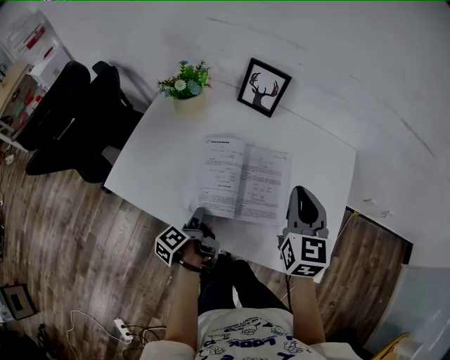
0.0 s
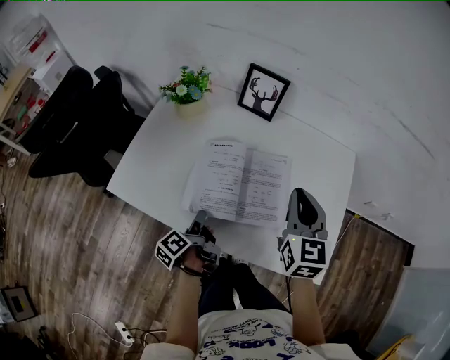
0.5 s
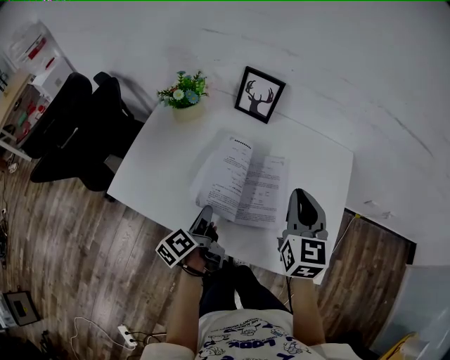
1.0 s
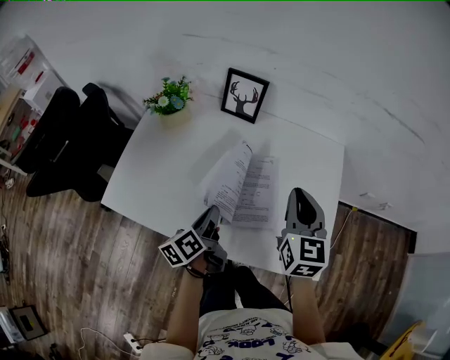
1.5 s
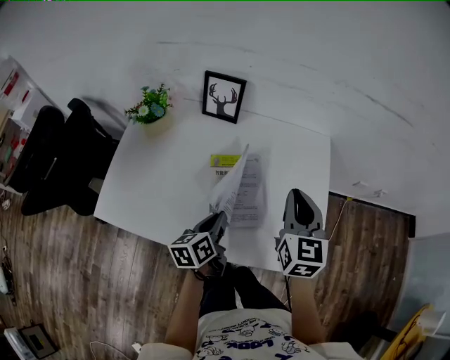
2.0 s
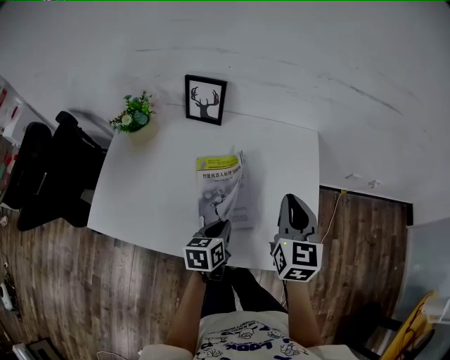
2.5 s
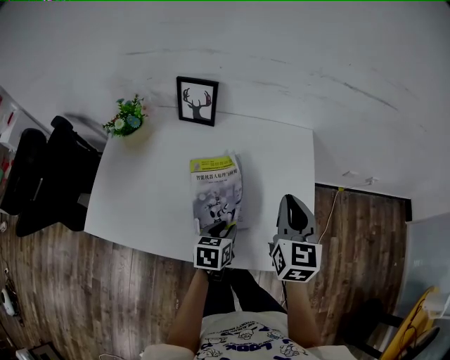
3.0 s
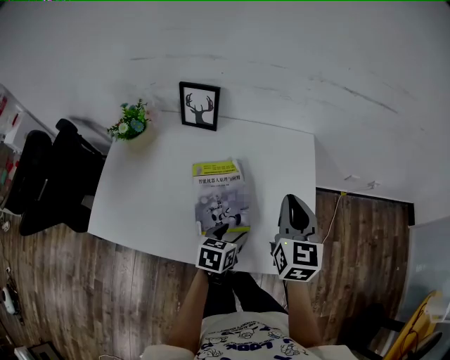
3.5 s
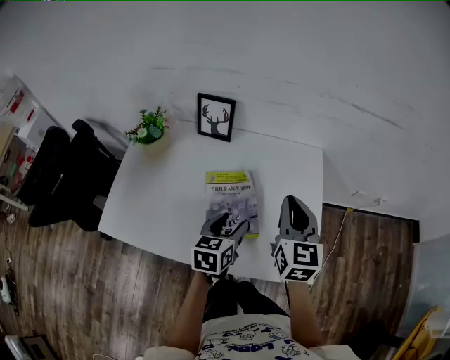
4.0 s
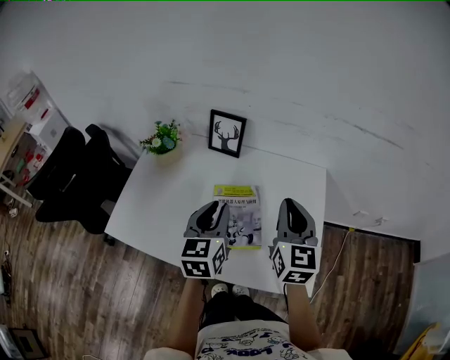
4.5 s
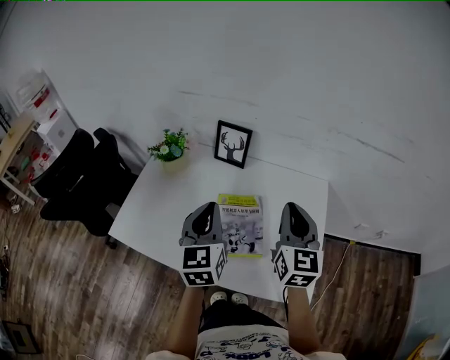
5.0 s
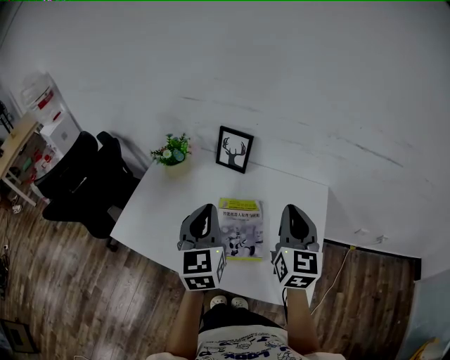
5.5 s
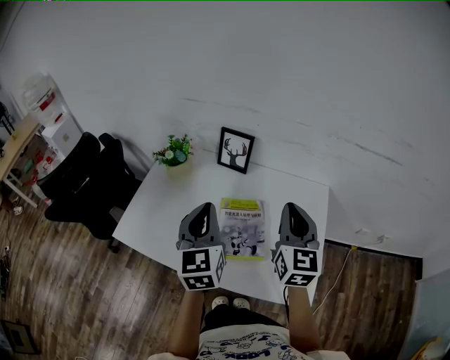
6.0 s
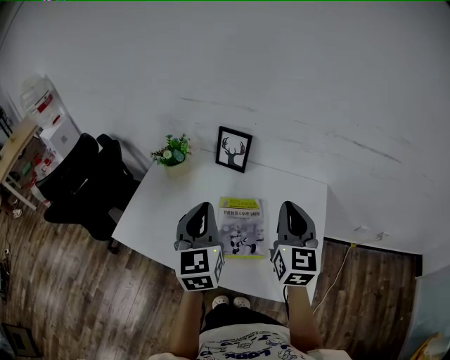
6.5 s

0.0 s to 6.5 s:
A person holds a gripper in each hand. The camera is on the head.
0.0 to 2.0 s: The right gripper shifts some 10 cm to the right. The left gripper shifts roughly 15 cm to the right and upward, and twists approximately 50 degrees clockwise, seen from behind.
2.0 to 4.5 s: The right gripper shifts about 5 cm upward. The left gripper moves upward, about 15 cm, turns by roughly 40 degrees, and opens, then closes once more.
4.5 to 6.5 s: The left gripper goes some 10 cm upward.

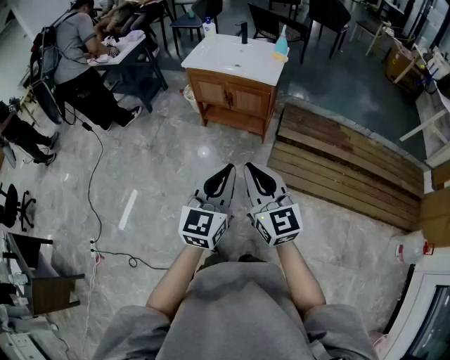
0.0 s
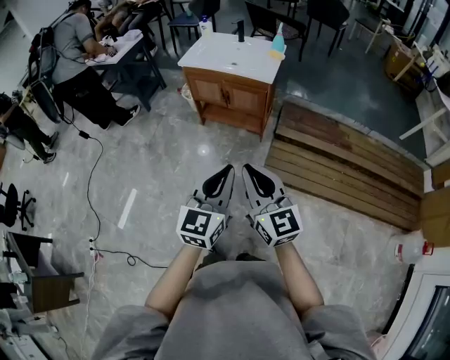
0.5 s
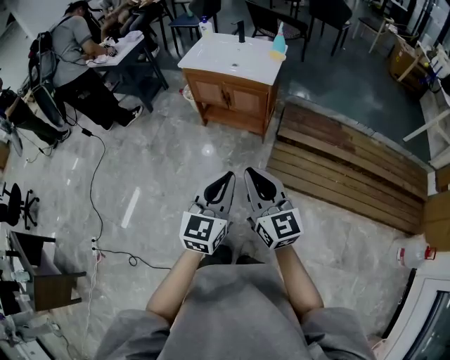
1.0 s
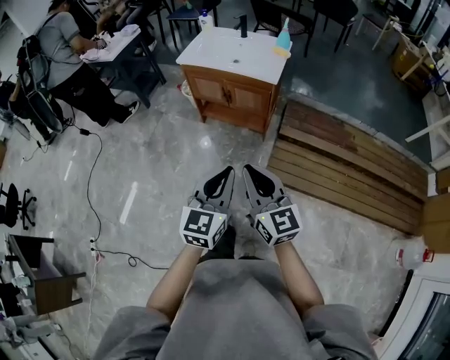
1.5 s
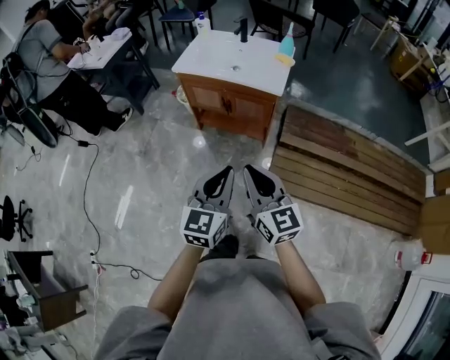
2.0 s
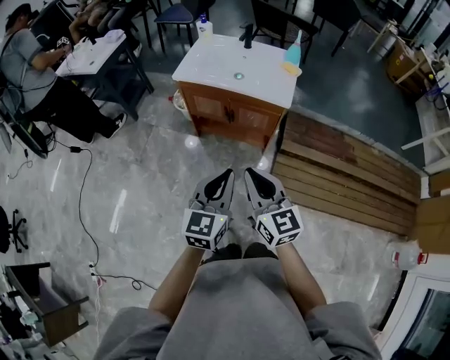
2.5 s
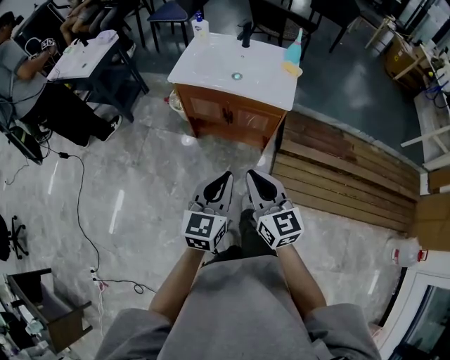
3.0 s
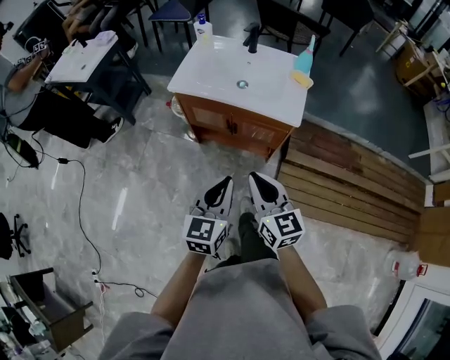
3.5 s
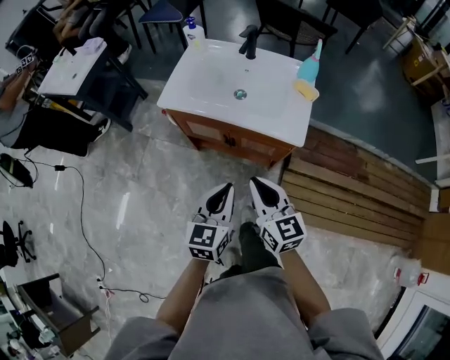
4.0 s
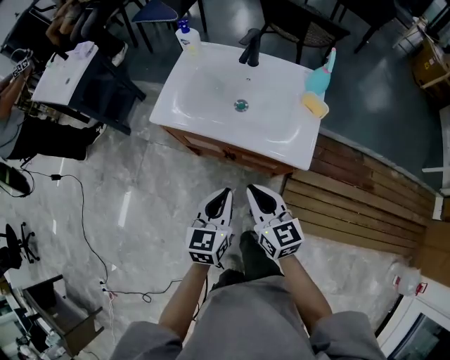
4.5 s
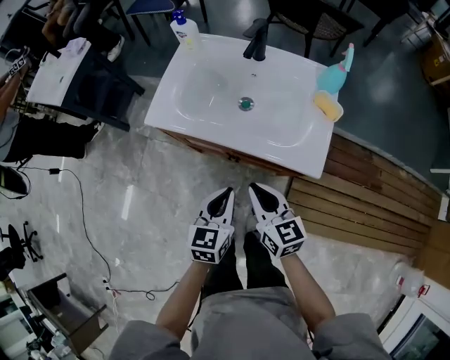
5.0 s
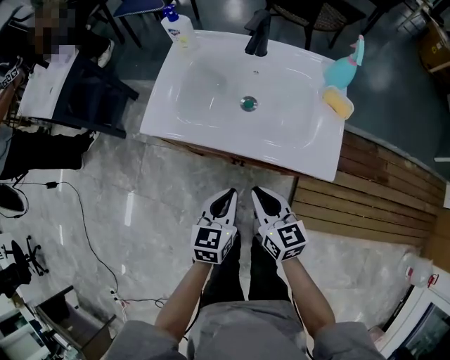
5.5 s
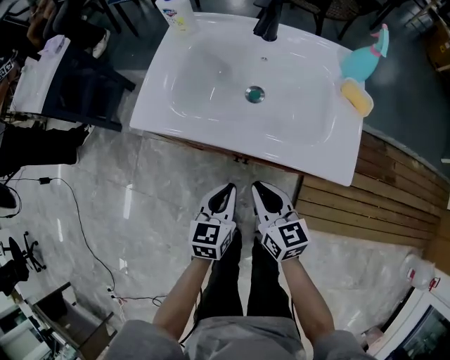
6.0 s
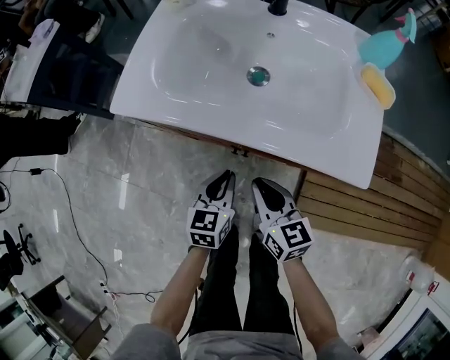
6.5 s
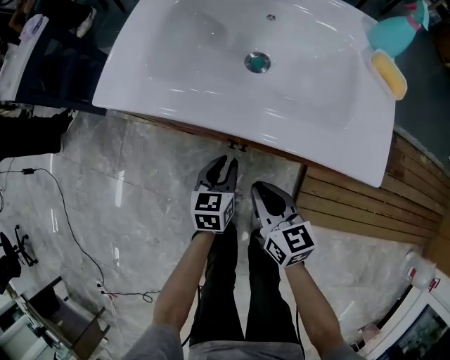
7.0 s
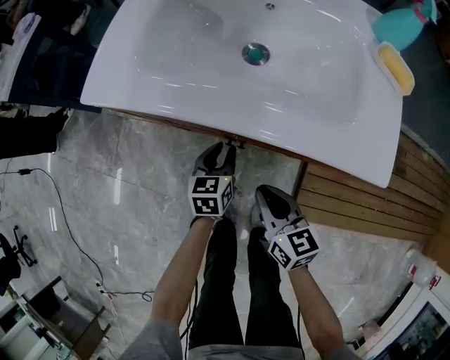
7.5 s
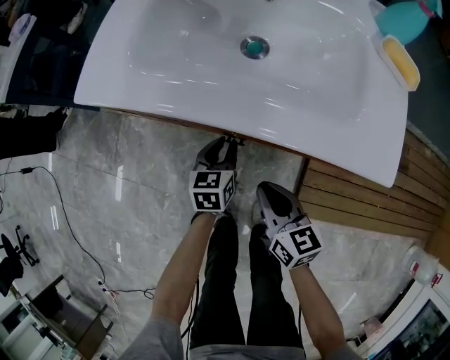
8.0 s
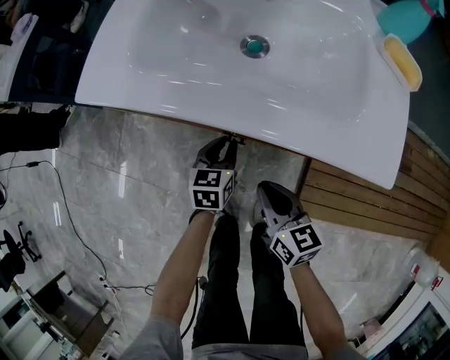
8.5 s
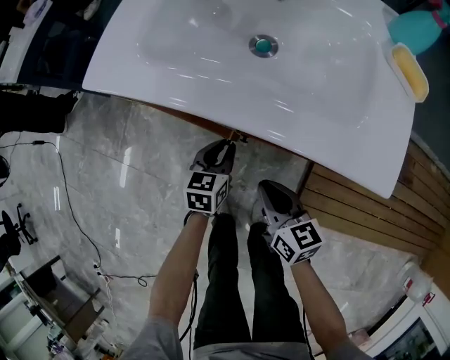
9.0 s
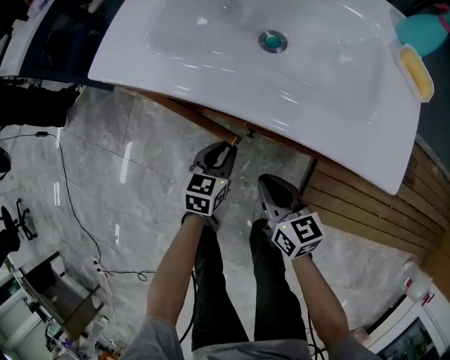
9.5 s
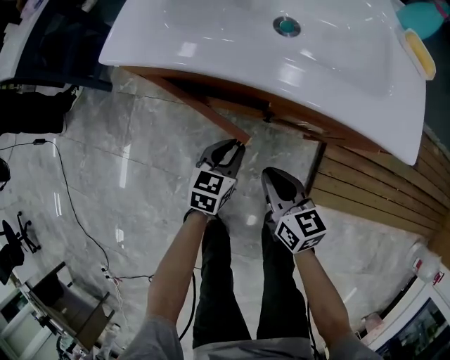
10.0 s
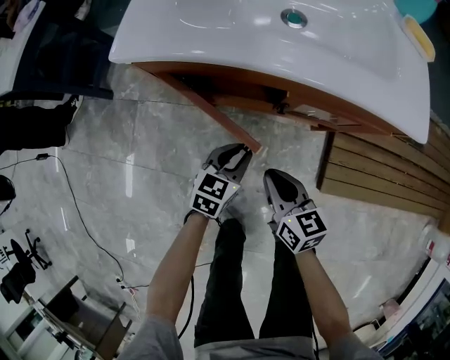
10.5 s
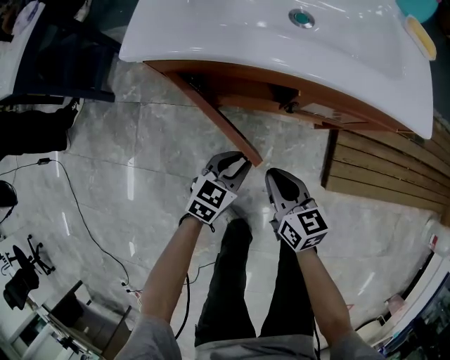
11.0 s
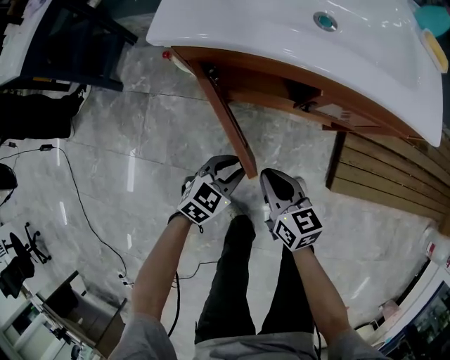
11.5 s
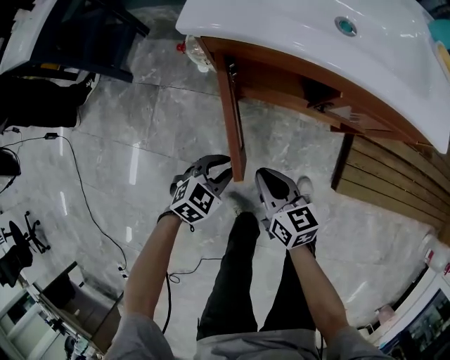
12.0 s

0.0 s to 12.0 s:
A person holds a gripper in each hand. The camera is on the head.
0.0 to 2.0 s: Both grippers move forward, about 20 cm.
2.0 to 4.0 s: Both grippers move forward, about 30 cm.
4.0 to 6.0 s: The two grippers go about 25 cm downward and forward.
6.0 to 8.0 s: Both grippers move downward, roughly 15 cm. The left gripper opens.
8.0 to 10.0 s: The right gripper goes about 5 cm to the left, while the left gripper moves backward, roughly 5 cm.
10.0 to 12.0 s: Both grippers move to the left and backward, about 20 cm. The left gripper rotates about 30 degrees.

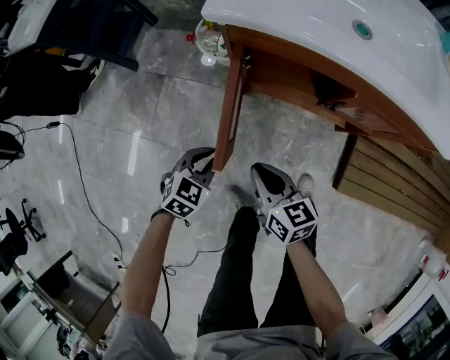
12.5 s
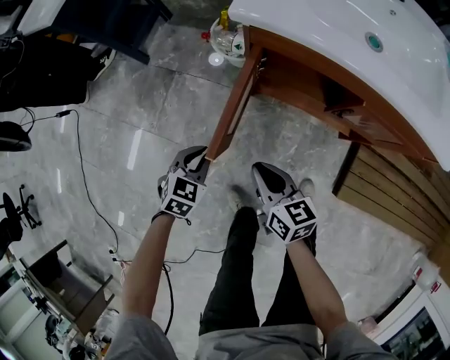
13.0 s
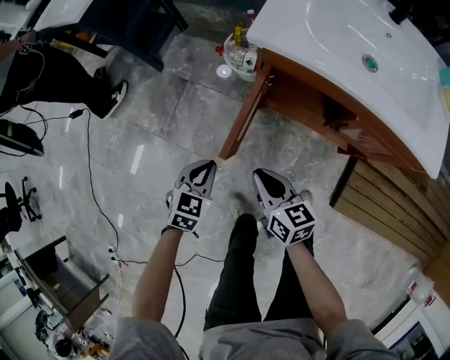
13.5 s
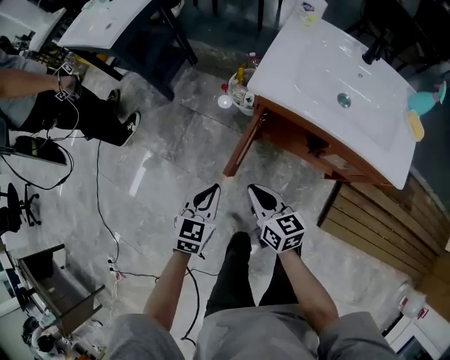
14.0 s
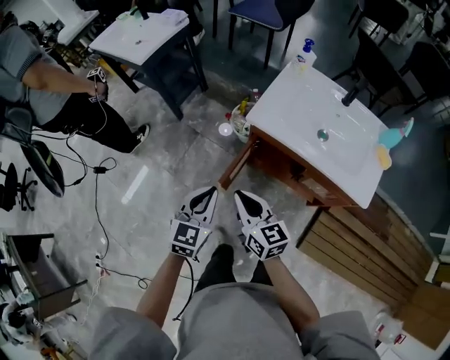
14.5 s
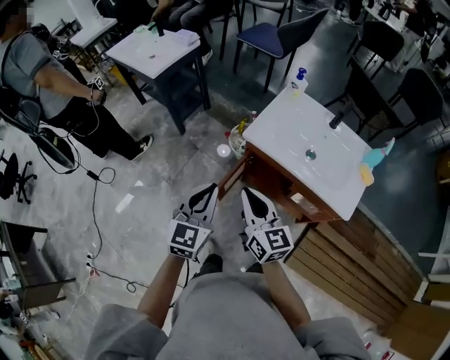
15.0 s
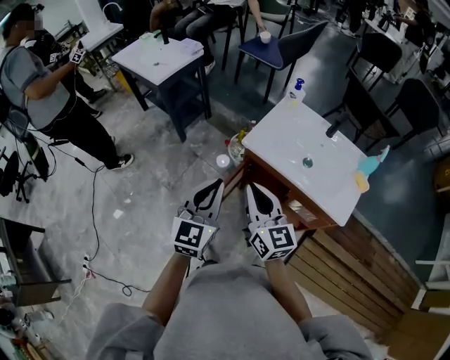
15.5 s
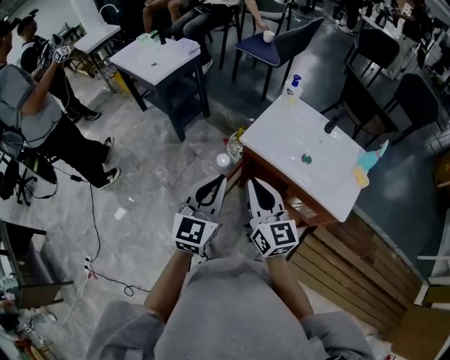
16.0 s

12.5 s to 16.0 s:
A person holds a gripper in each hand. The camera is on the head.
12.5 to 14.5 s: Both grippers travel together upward, roughly 35 cm. The right gripper swivels roughly 20 degrees. The left gripper changes its angle by roughly 40 degrees.
14.5 to 16.0 s: The grippers both shift upward by about 15 cm.

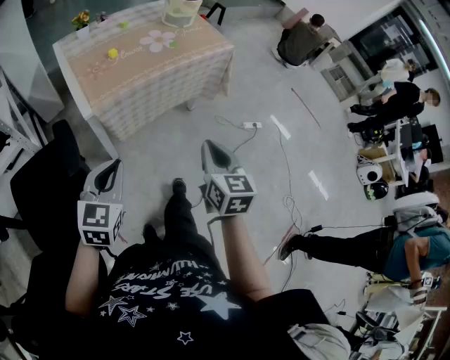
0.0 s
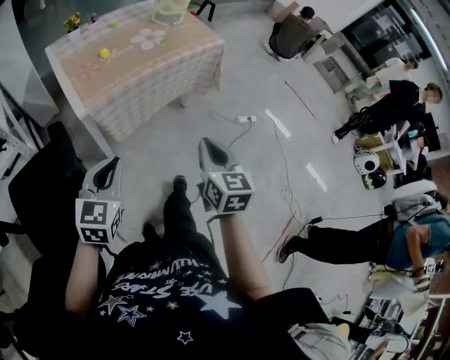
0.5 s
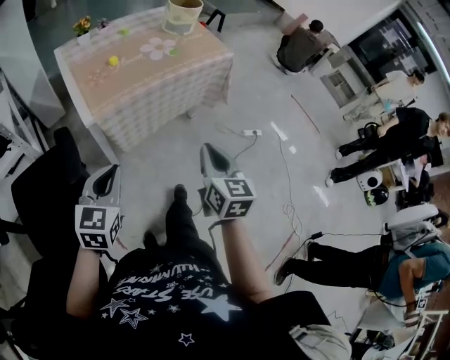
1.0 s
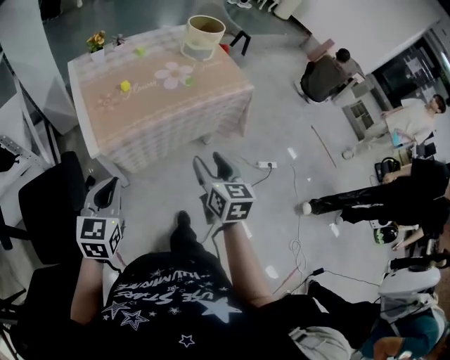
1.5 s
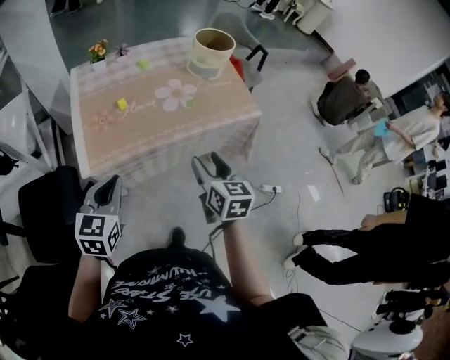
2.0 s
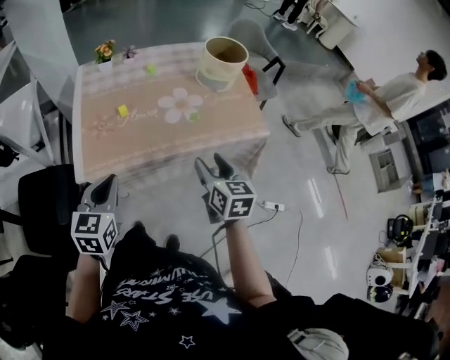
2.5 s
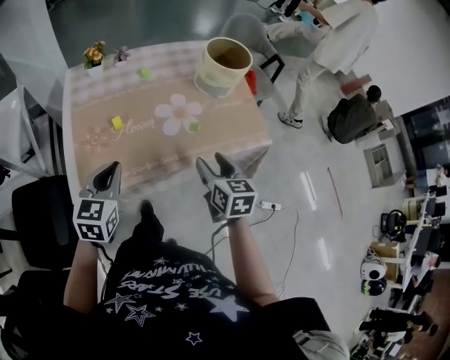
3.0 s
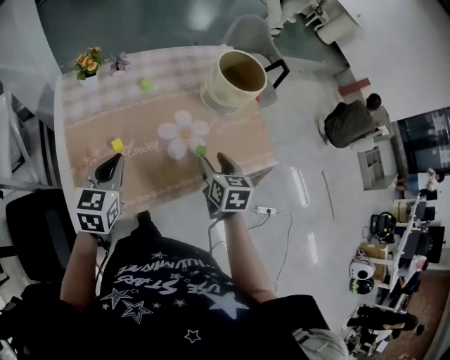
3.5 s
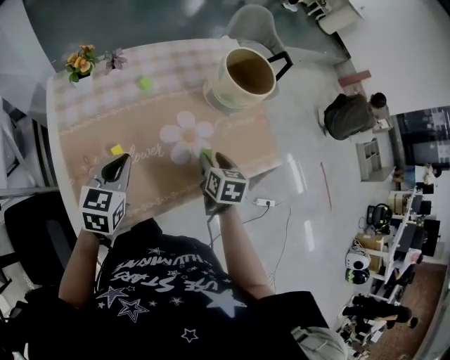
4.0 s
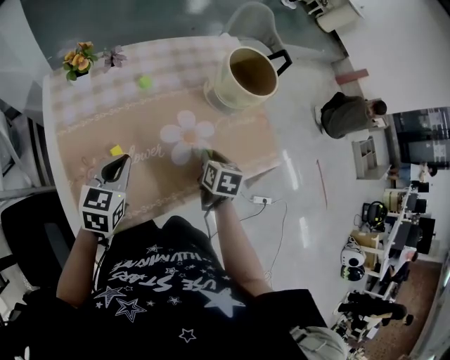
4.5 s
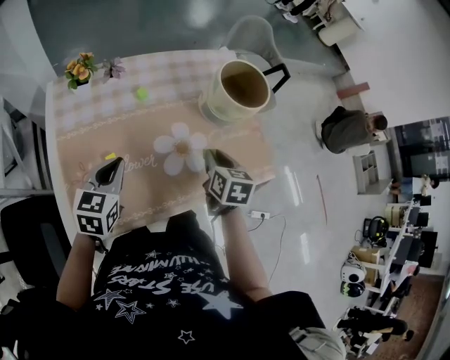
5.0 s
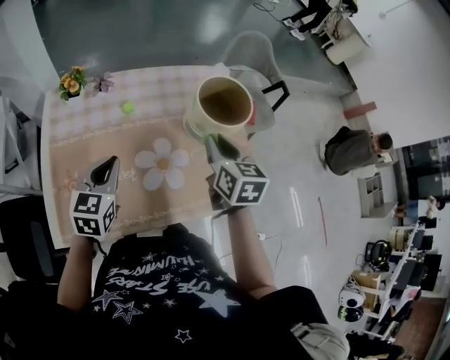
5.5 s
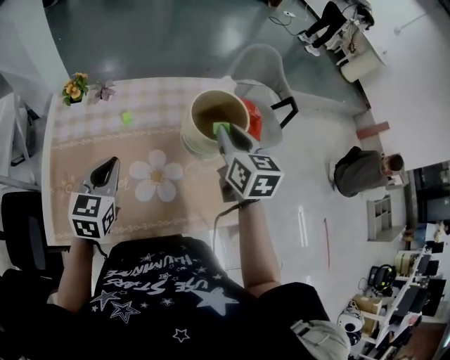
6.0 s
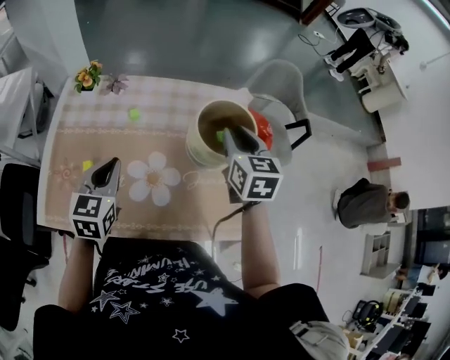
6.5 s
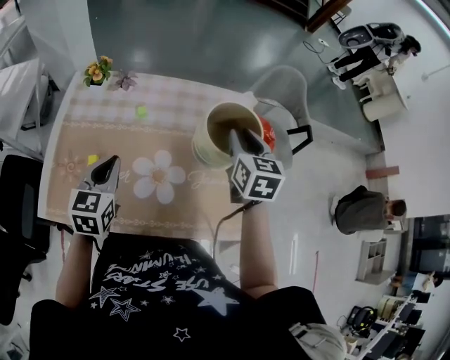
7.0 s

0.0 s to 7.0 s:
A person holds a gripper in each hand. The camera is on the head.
0.0 to 2.0 s: The grippers both shift forward by approximately 25 cm. The right gripper opens its fingers.
2.0 to 3.5 s: The two grippers go approximately 25 cm forward.
3.5 to 5.0 s: The right gripper shifts roughly 5 cm forward, and closes its fingers. Meanwhile the left gripper ends up some 5 cm from where it was.
5.0 to 7.0 s: The left gripper moves to the right, roughly 10 cm, and changes its angle by about 30 degrees. Meanwhile the right gripper heads forward, upward and to the right, covering some 25 cm, and swivels about 30 degrees.
